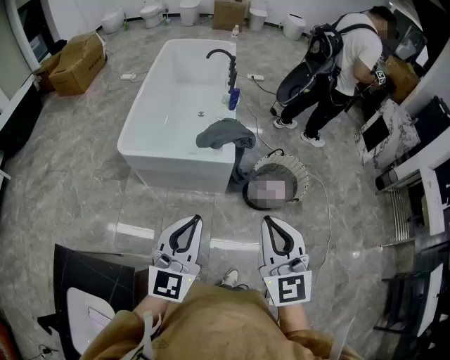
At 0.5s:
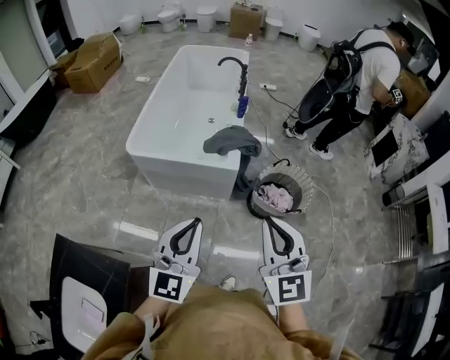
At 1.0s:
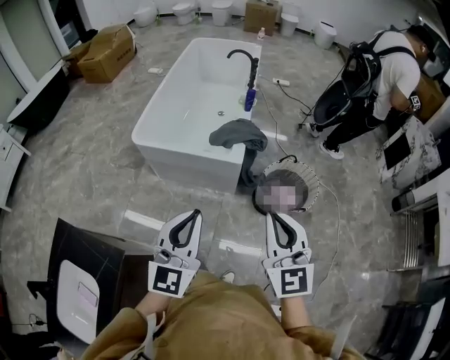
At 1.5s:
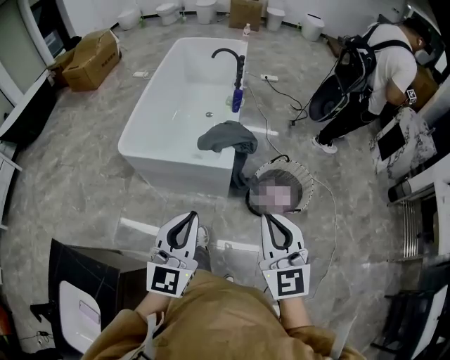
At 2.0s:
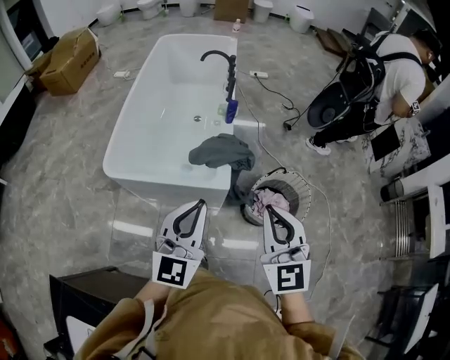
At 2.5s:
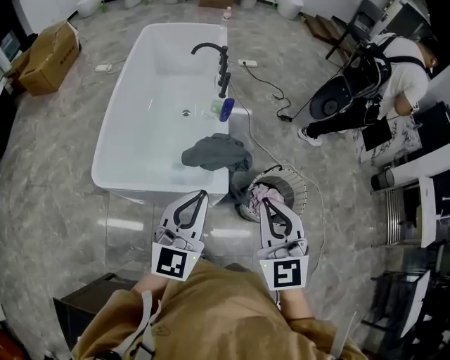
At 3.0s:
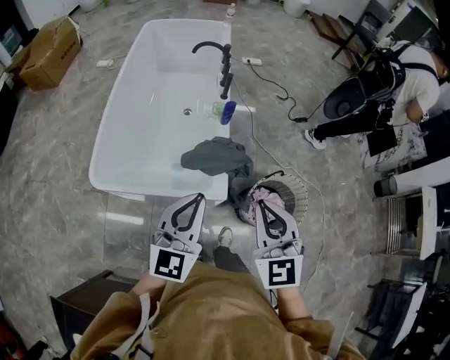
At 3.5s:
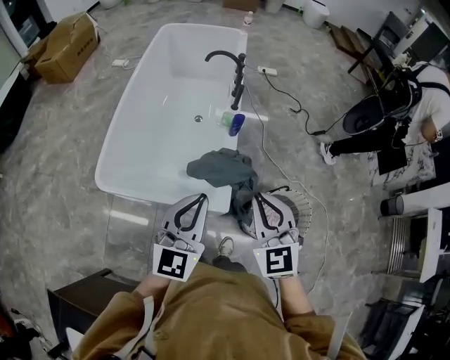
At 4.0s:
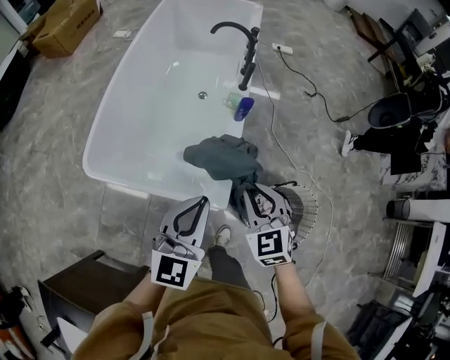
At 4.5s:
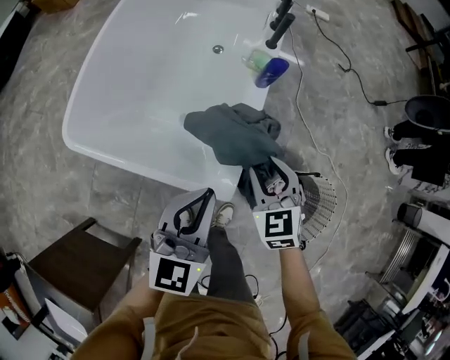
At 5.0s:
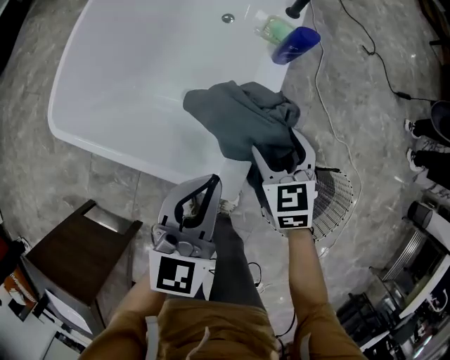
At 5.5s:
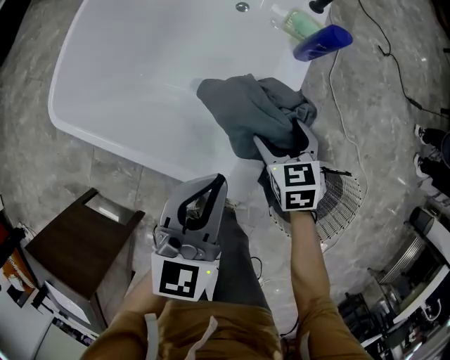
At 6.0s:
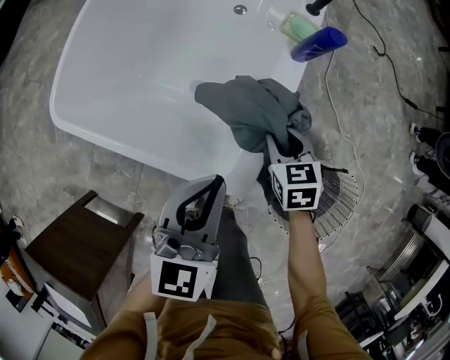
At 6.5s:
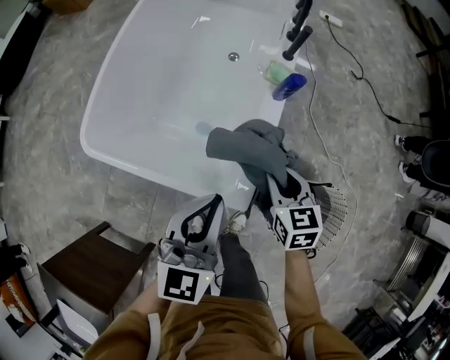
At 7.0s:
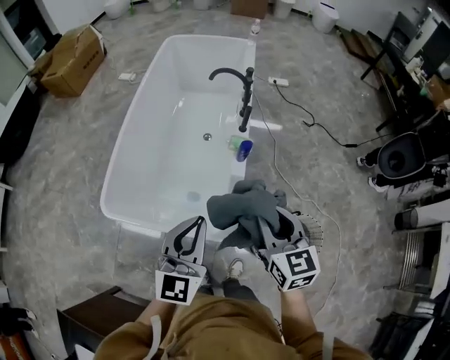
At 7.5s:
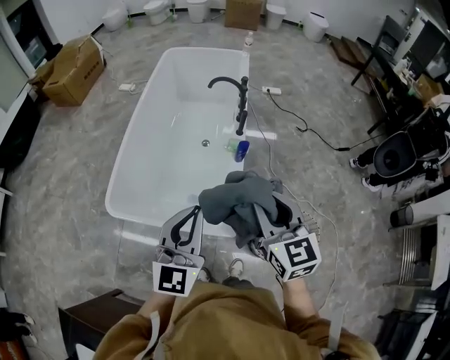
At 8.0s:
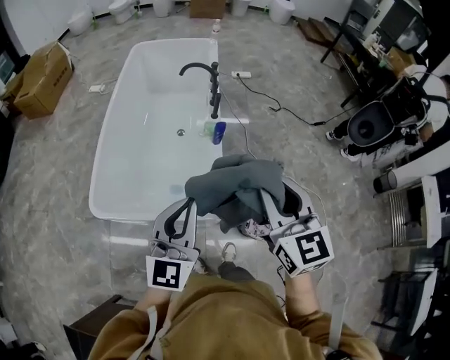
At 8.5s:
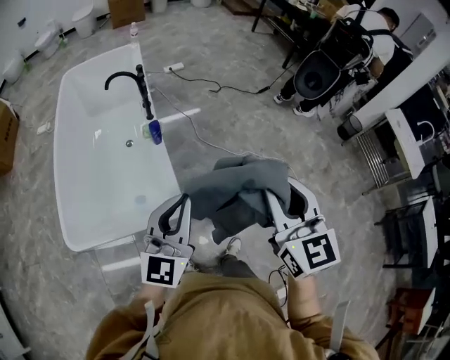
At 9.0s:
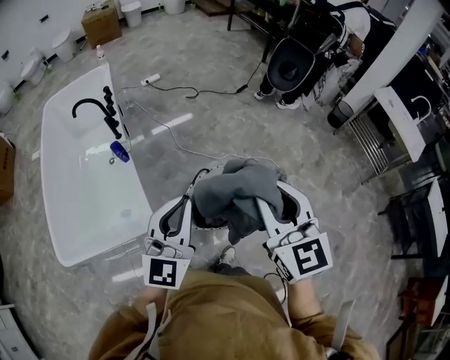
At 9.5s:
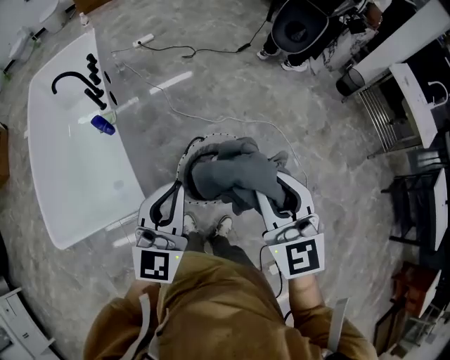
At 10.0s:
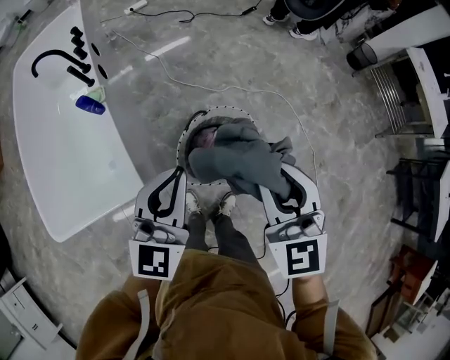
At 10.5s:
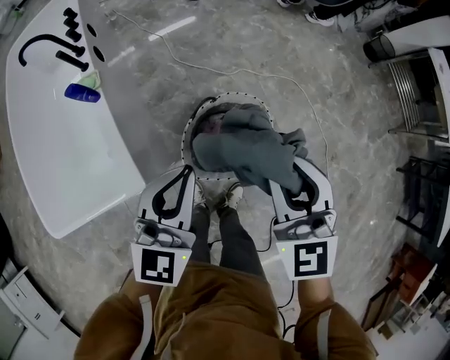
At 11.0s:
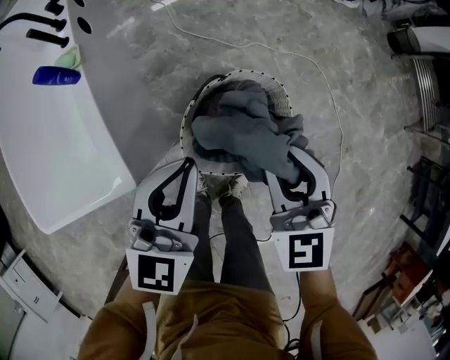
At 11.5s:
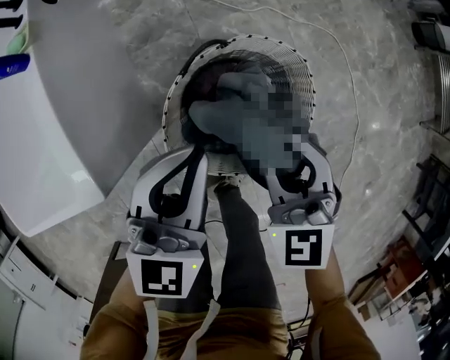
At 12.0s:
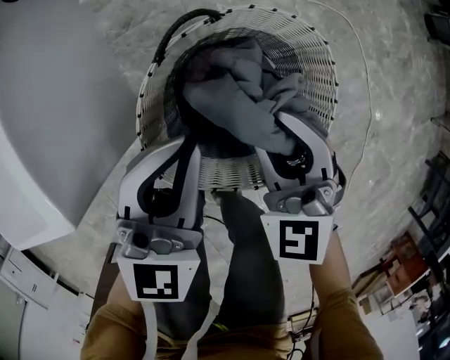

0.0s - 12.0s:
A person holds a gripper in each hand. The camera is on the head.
0.0s - 2.0s: The two grippers go approximately 25 cm forward.
2.0s - 4.0s: The grippers both shift forward and downward by some 30 cm. The right gripper turns by some 30 degrees.
4.0s - 6.0s: The left gripper heads downward, covering about 20 cm; the right gripper travels downward and forward by about 35 cm, rotates approximately 30 degrees, and opens, then closes again.
6.0s - 8.0s: The left gripper shifts some 35 cm upward, and swivels some 30 degrees. Meanwhile the right gripper moves upward, roughly 60 cm, and tips its fingers upward by roughly 40 degrees.
8.0s - 10.0s: The two grippers go some 40 cm to the right. The right gripper rotates approximately 20 degrees, while the left gripper turns by approximately 30 degrees.
10.0s - 12.0s: The two grippers go roughly 50 cm downward. The right gripper turns by roughly 20 degrees.

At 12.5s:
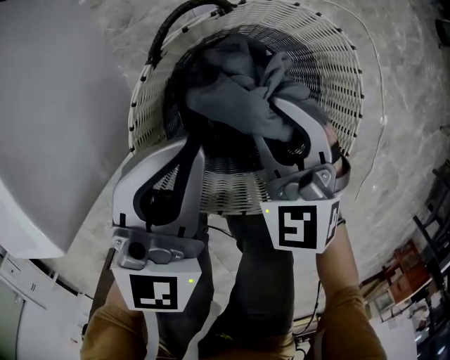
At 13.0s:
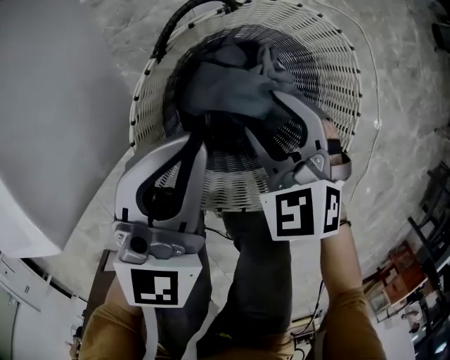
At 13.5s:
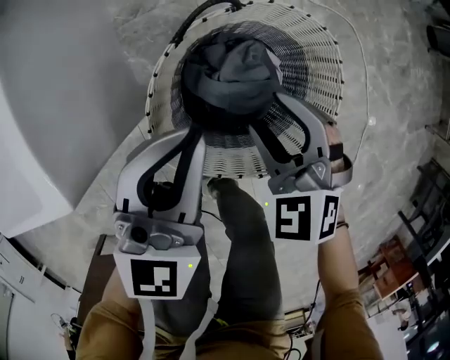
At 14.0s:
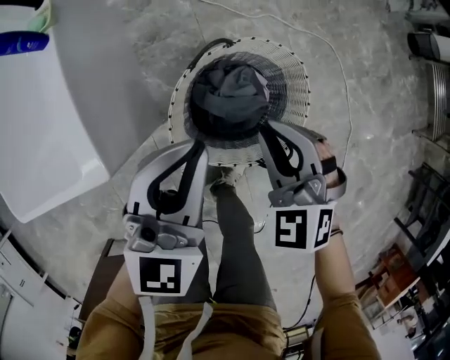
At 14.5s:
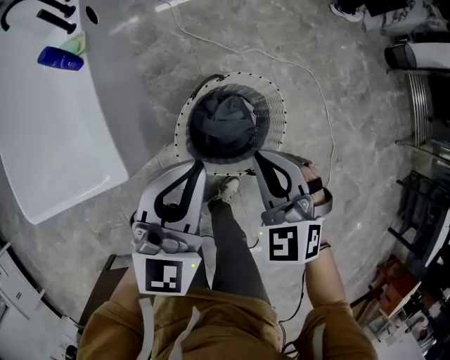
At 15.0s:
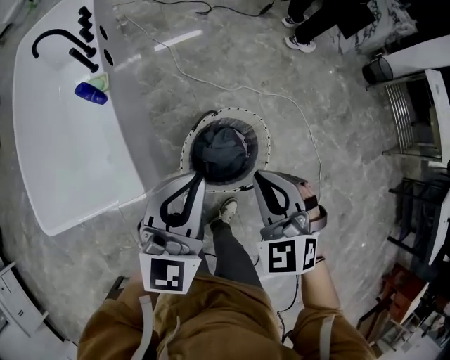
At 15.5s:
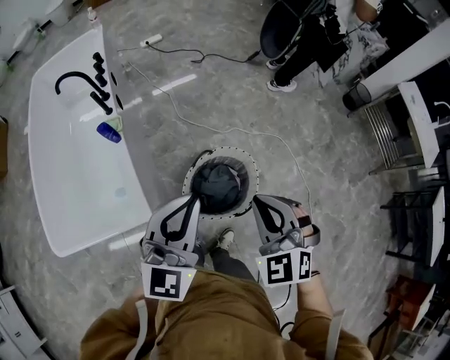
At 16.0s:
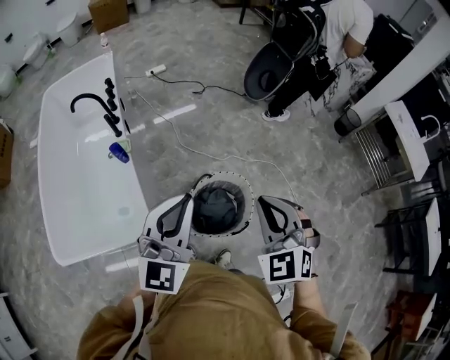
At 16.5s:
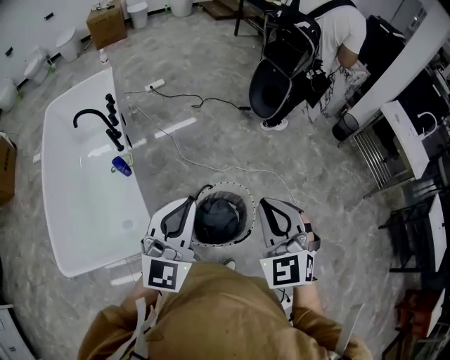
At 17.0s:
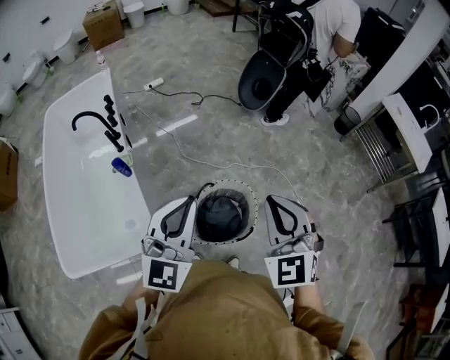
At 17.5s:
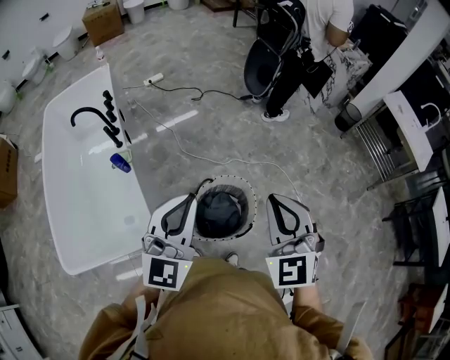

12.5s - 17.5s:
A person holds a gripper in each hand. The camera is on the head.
12.5s - 15.0s: Both grippers travel together upward, roughly 50 cm. The right gripper opens, then closes again.
15.0s - 17.5s: Both grippers travel together upward, some 20 cm. The right gripper changes its angle by some 20 degrees.

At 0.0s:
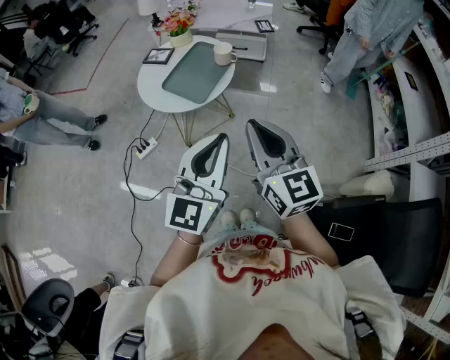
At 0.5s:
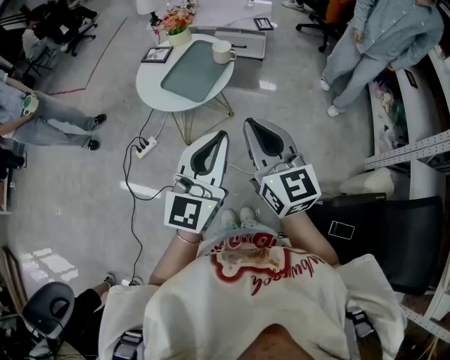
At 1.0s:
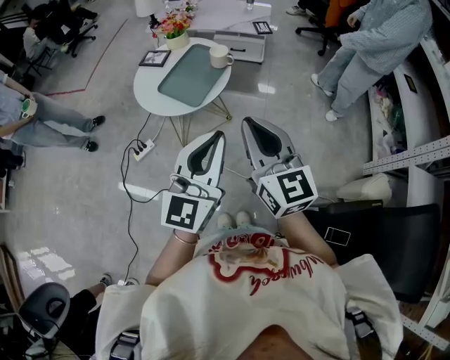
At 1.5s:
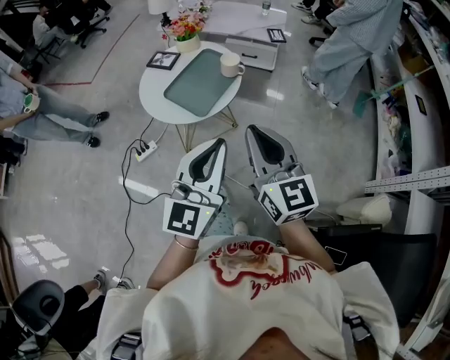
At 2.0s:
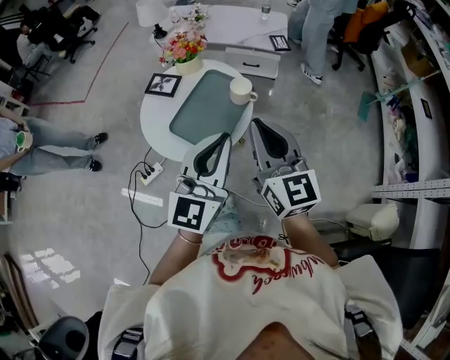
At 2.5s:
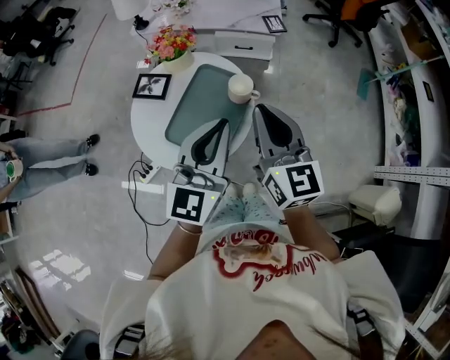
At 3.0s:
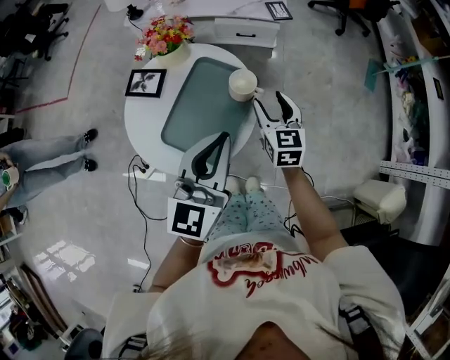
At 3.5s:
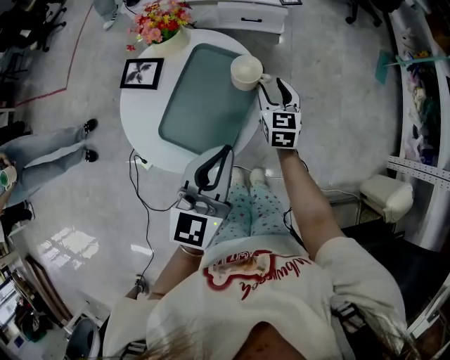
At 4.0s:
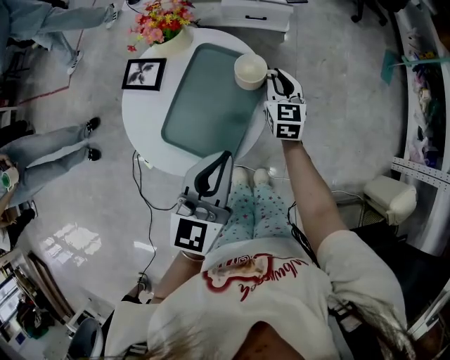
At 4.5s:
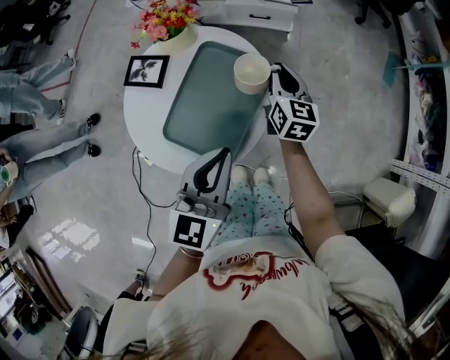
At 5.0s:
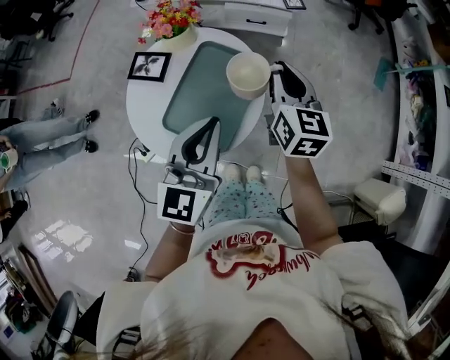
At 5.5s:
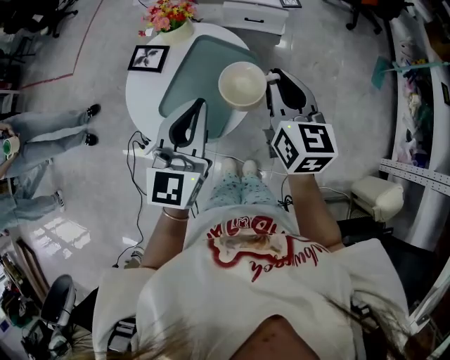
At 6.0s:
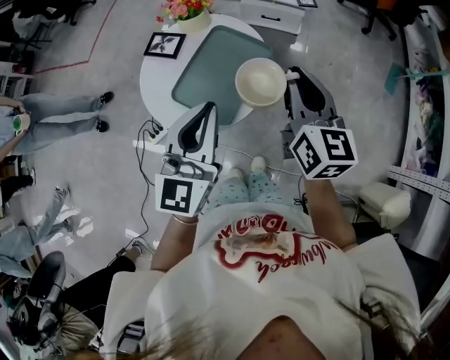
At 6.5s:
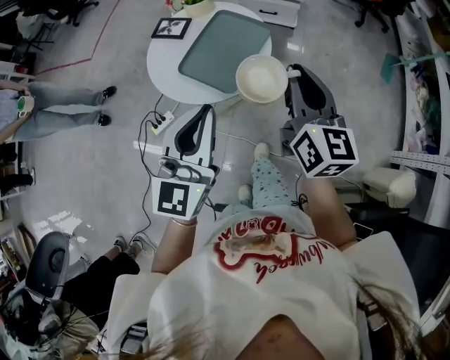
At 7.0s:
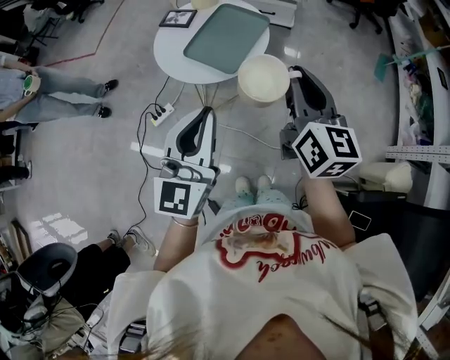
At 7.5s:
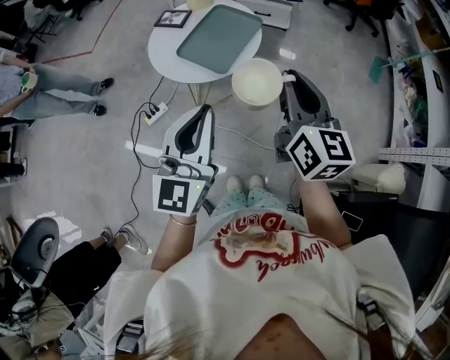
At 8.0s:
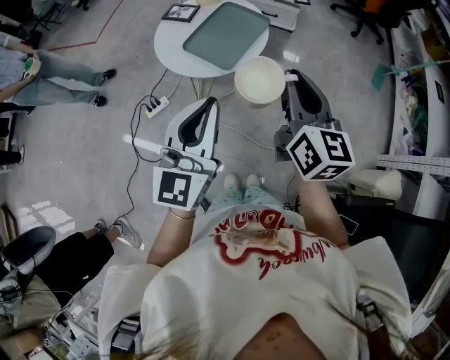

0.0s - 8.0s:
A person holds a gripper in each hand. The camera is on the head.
0.0s - 2.0s: Both grippers travel together forward, some 25 cm.
2.0s - 4.0s: The left gripper is displaced downward and forward by roughly 15 cm. Meanwhile the right gripper shifts roughly 40 cm downward and forward, rotates roughly 30 degrees, and opens and closes again.
4.0s - 6.0s: The right gripper travels upward and backward by some 30 cm, and turns by approximately 20 degrees, while the left gripper shifts some 10 cm upward.
6.0s - 8.0s: Both grippers travel together backward, some 25 cm.

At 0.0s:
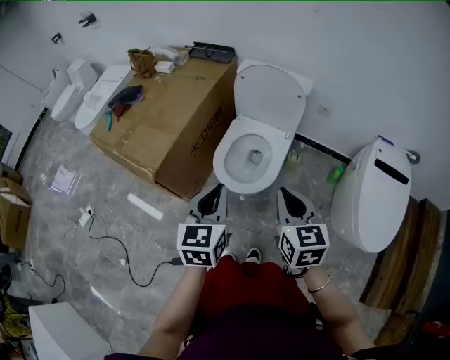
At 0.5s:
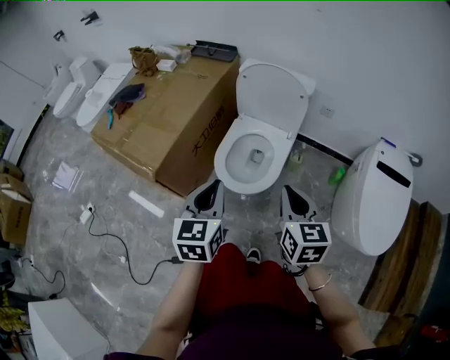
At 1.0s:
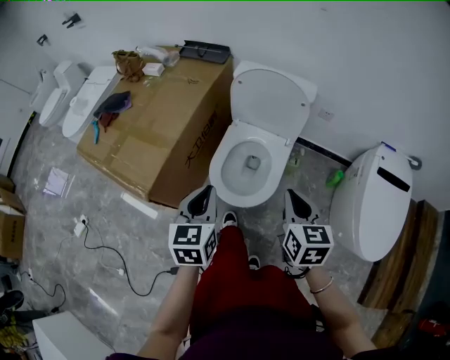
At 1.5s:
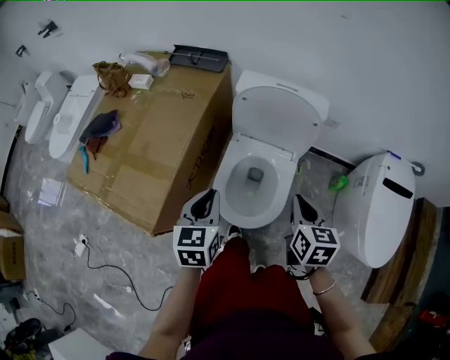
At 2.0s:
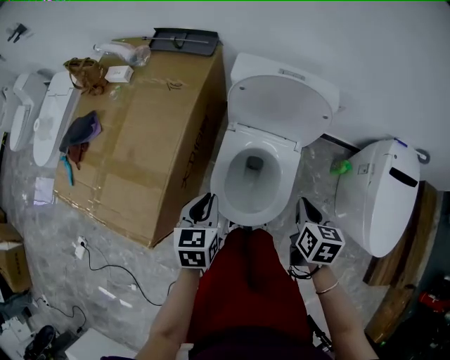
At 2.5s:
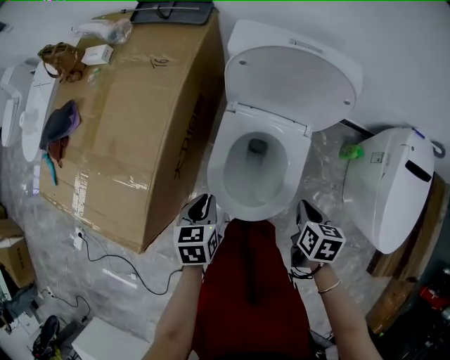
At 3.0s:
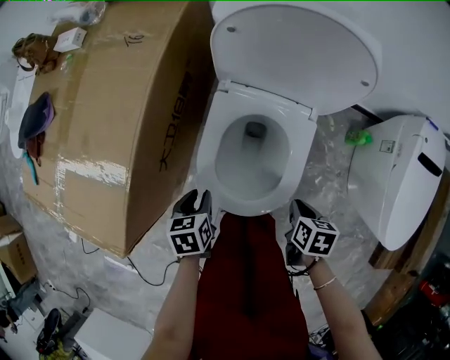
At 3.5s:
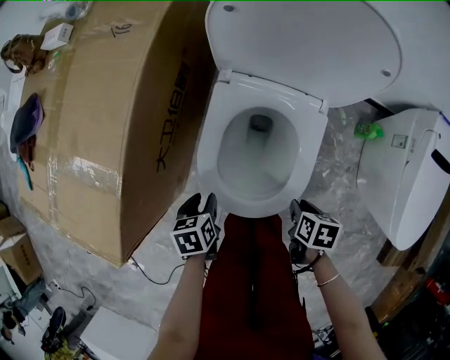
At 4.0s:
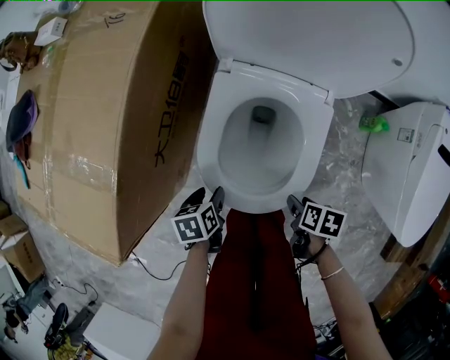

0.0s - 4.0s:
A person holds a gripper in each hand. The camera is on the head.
0.0s - 2.0s: The right gripper heads forward and downward, covering some 30 cm, and turns by roughly 40 degrees, while the left gripper goes approximately 35 cm forward, downward and to the left, and rotates roughly 20 degrees.
2.0s - 4.0s: Both grippers travel together downward, approximately 30 cm. The right gripper swivels some 40 degrees, and opens up, while the left gripper swivels roughly 40 degrees, and opens.
